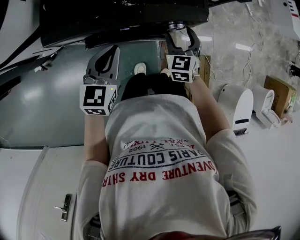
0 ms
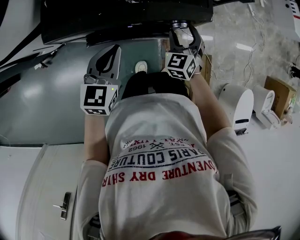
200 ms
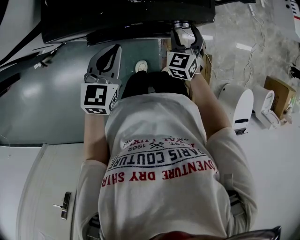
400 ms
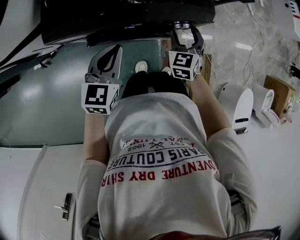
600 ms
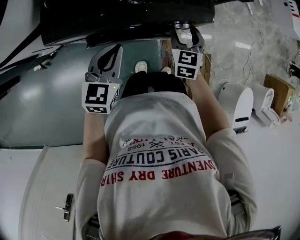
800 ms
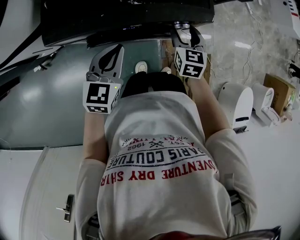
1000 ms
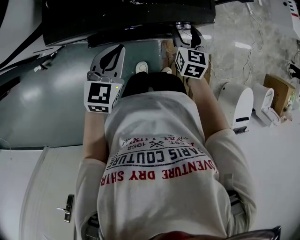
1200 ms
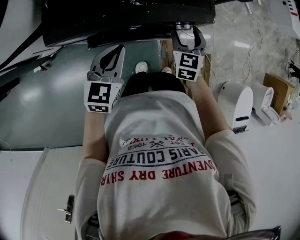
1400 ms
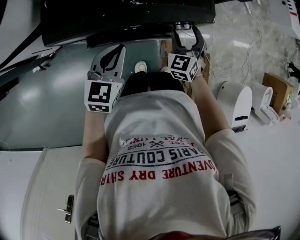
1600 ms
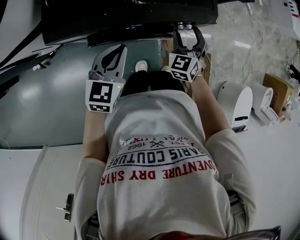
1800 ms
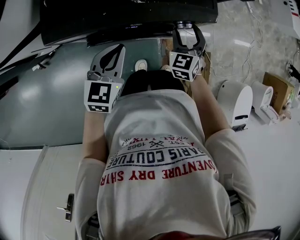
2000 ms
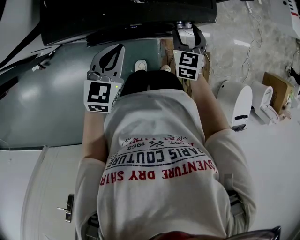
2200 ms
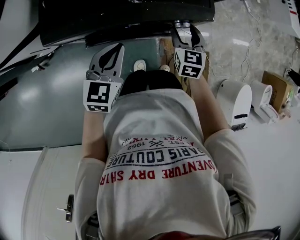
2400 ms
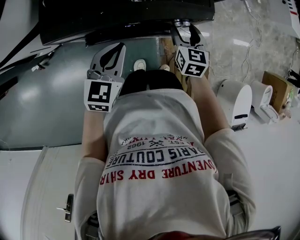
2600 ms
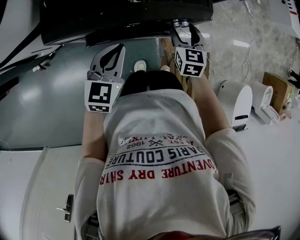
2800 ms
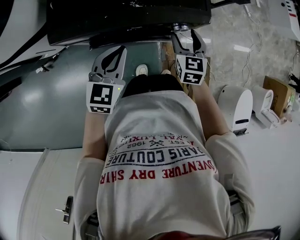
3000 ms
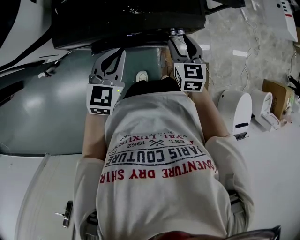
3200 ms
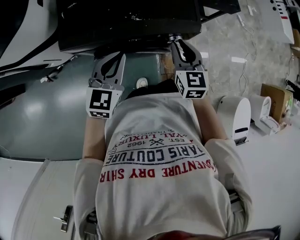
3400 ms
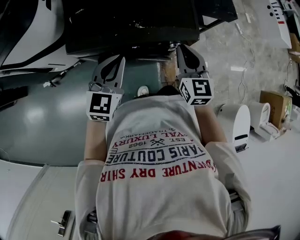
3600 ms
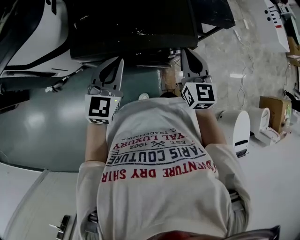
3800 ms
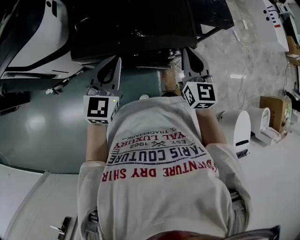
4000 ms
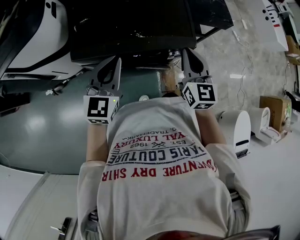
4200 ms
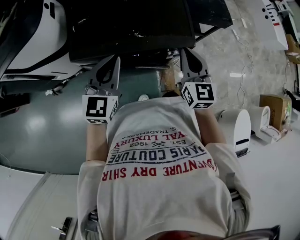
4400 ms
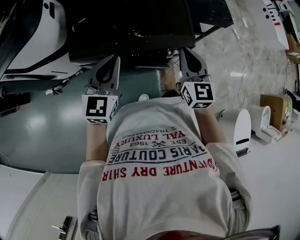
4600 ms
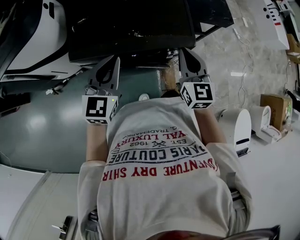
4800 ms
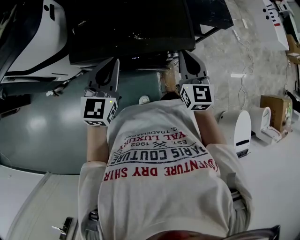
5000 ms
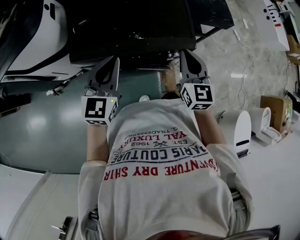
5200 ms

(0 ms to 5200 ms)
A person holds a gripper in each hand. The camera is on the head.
1800 ms - 3400 ms: Both grippers move upward, approximately 10 cm. The right gripper turns by approximately 30 degrees, and closes.
3400 ms - 5200 ms: The grippers both shift upward by approximately 10 cm.

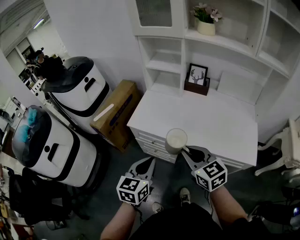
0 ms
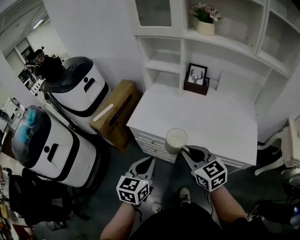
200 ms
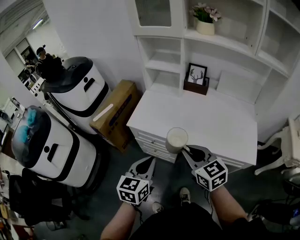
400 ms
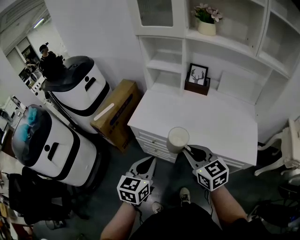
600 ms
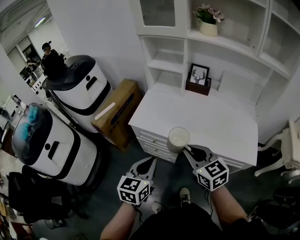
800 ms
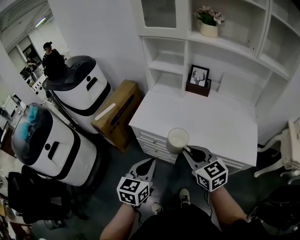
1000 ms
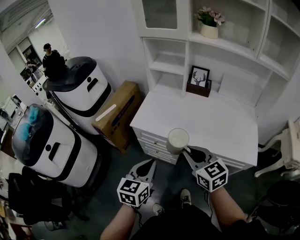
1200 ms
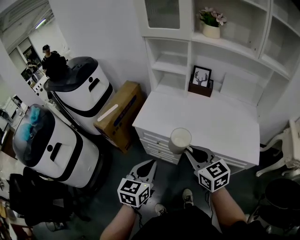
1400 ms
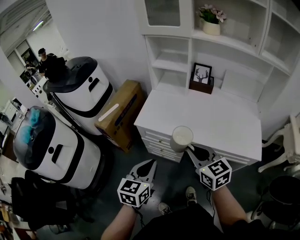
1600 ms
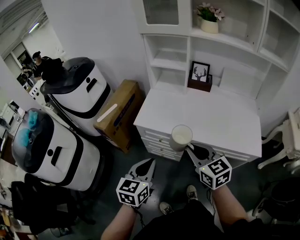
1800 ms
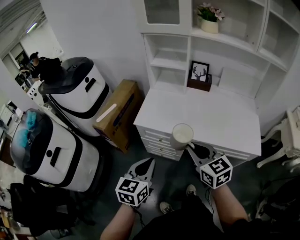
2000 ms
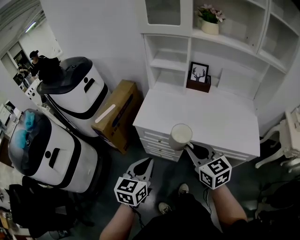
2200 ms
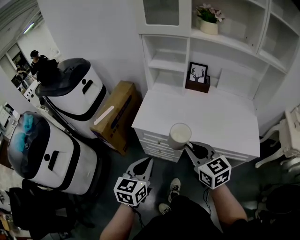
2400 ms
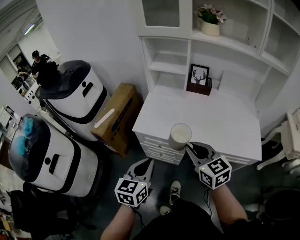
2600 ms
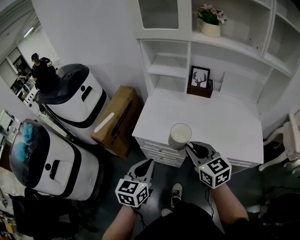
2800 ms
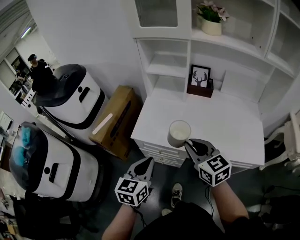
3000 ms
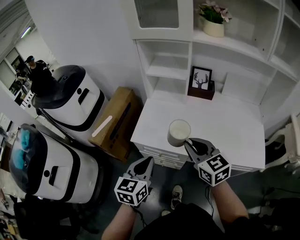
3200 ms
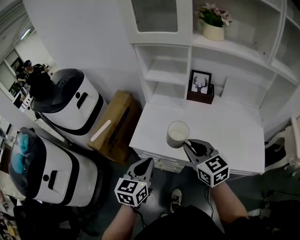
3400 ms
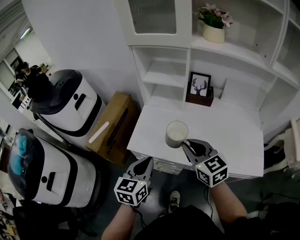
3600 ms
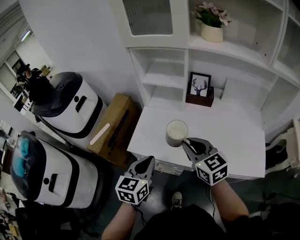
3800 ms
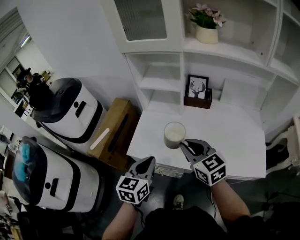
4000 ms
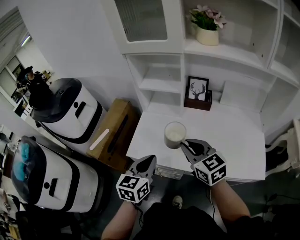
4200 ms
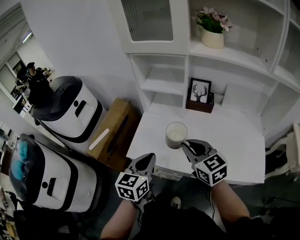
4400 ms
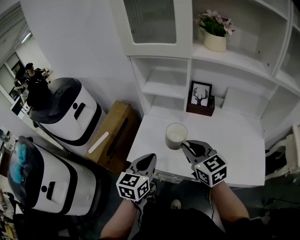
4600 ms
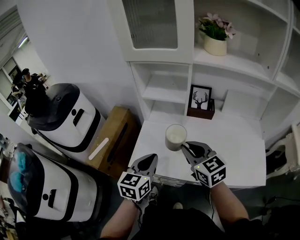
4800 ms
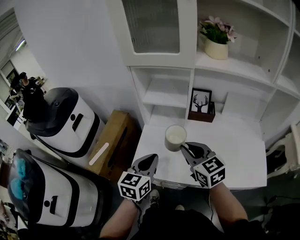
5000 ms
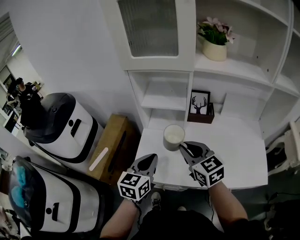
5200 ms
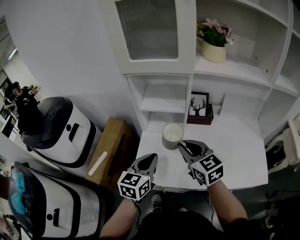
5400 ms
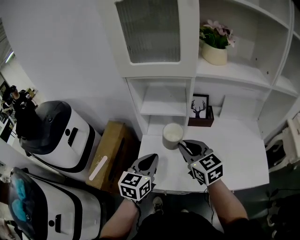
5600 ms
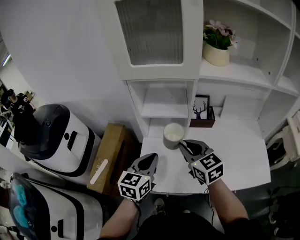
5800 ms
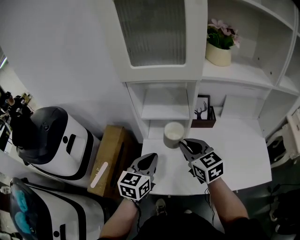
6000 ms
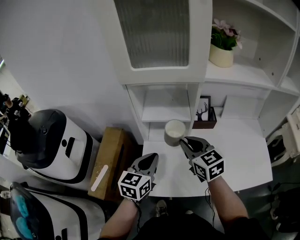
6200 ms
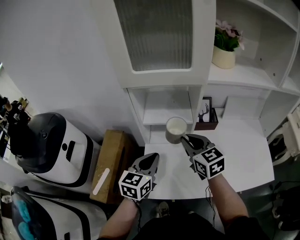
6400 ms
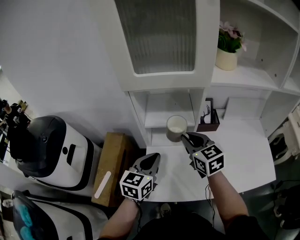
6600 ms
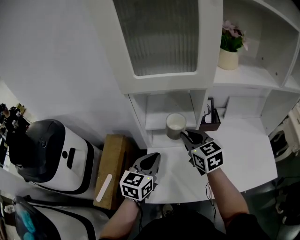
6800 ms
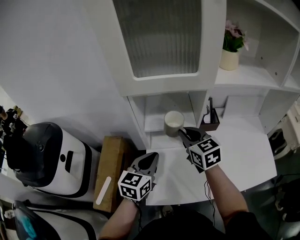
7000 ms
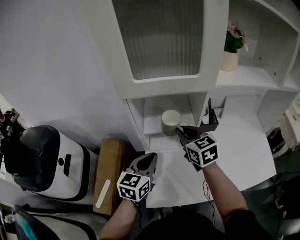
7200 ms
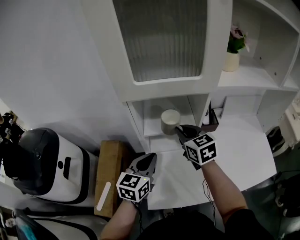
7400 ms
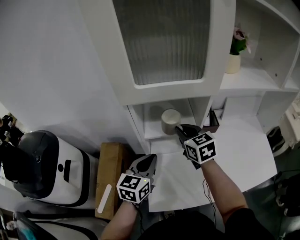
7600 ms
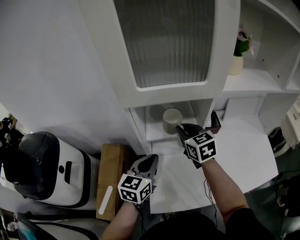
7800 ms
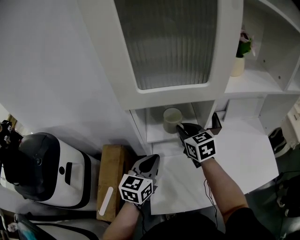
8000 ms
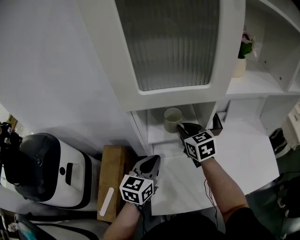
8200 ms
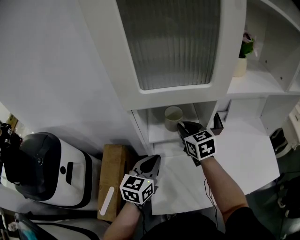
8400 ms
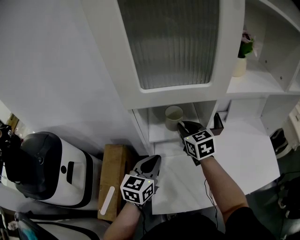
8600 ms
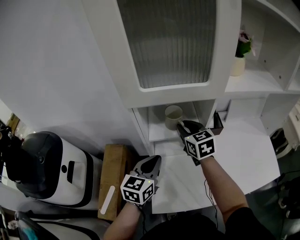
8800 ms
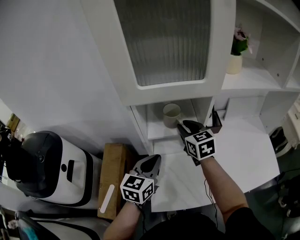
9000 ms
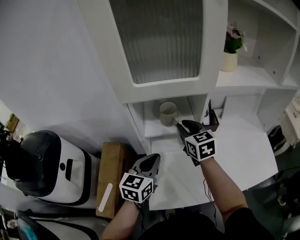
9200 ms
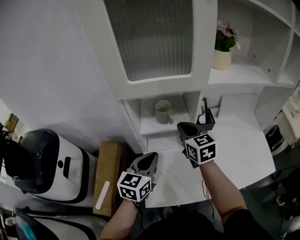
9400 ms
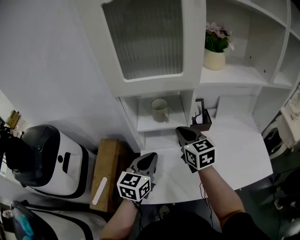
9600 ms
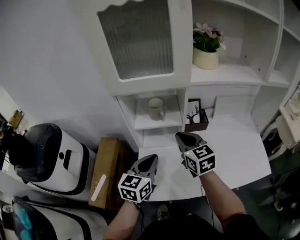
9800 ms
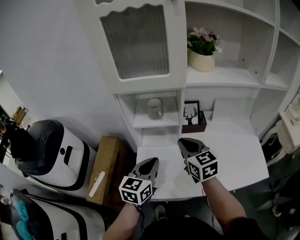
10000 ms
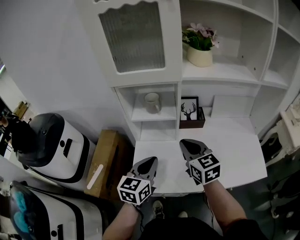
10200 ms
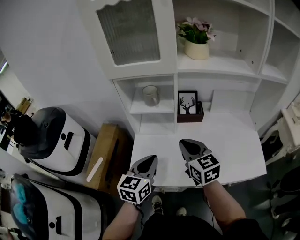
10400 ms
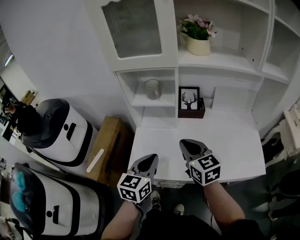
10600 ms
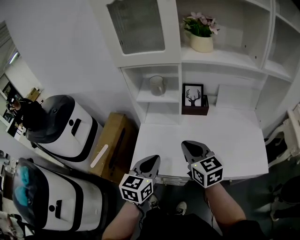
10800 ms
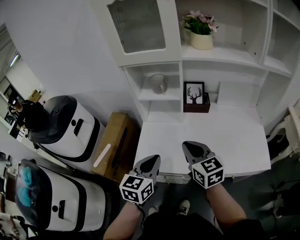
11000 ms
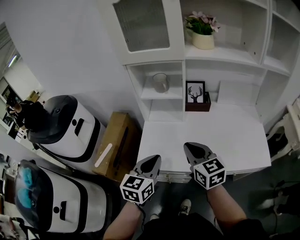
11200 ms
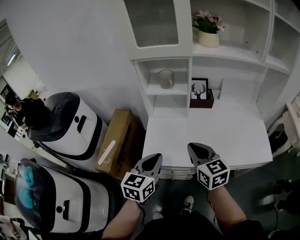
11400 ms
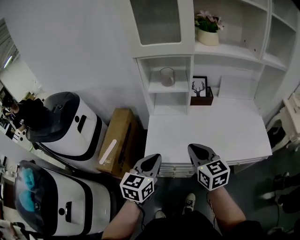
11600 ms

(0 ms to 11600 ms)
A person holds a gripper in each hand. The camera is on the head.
0 ms - 1400 ms: There are only small adjustments of the grippers.
1400 ms - 2800 ms: Both grippers travel together forward, roughly 10 cm.
2800 ms - 4400 ms: Both grippers travel together forward, approximately 15 cm.
4400 ms - 5800 ms: The left gripper is displaced forward by some 15 cm. The right gripper goes some 15 cm forward and to the left.
5800 ms - 7200 ms: The left gripper is displaced forward and to the left by roughly 10 cm, while the right gripper goes roughly 15 cm forward.
7200 ms - 8800 ms: The right gripper shifts roughly 5 cm forward.
8800 ms - 10200 ms: Both grippers travel together backward and to the right, roughly 20 cm.
10200 ms - 11600 ms: The right gripper shifts some 20 cm backward, while the left gripper goes some 15 cm backward and to the left.

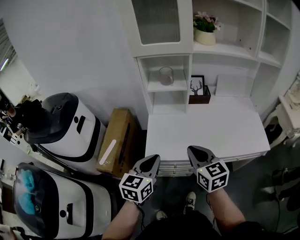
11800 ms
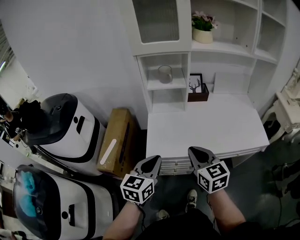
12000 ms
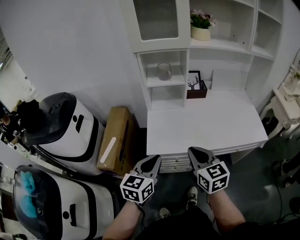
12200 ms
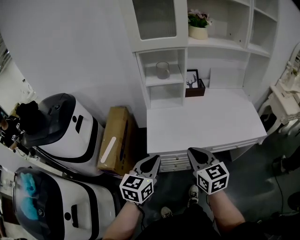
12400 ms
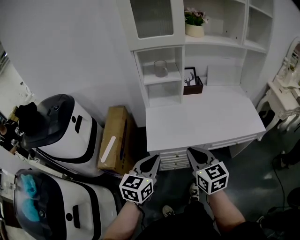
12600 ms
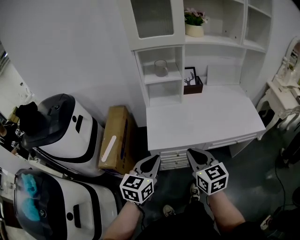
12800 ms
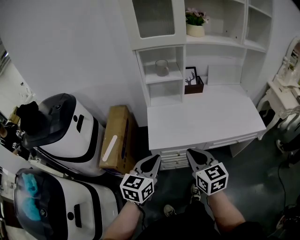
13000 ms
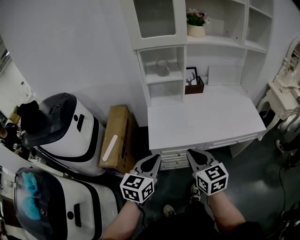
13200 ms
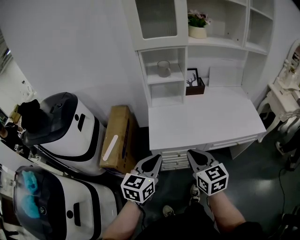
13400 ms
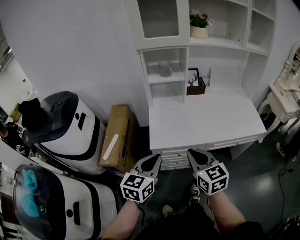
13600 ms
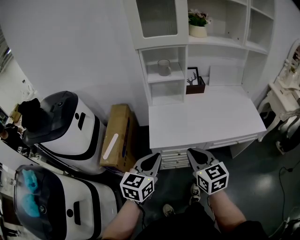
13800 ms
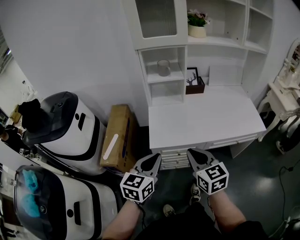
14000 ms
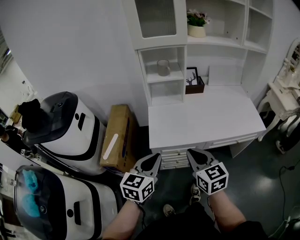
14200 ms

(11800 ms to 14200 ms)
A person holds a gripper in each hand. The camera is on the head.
11800 ms - 13000 ms: The two grippers go roughly 10 cm backward.
13000 ms - 14200 ms: Both grippers stay about where they are.

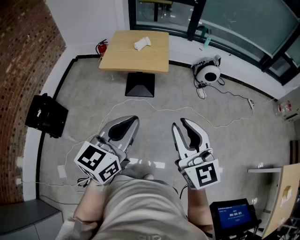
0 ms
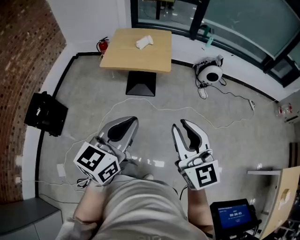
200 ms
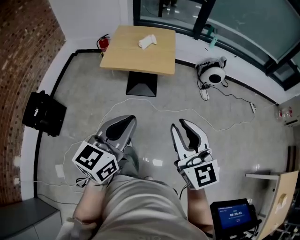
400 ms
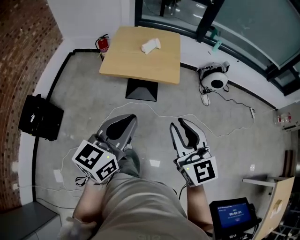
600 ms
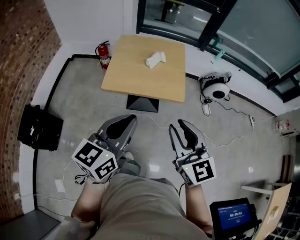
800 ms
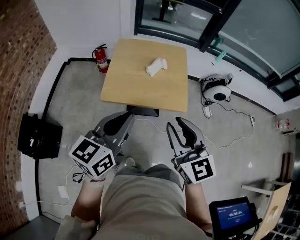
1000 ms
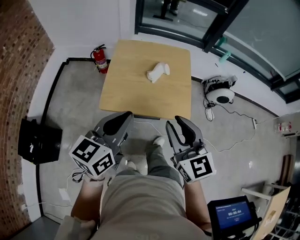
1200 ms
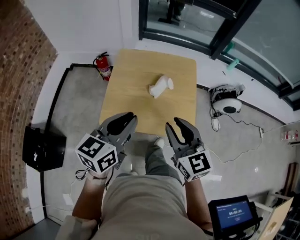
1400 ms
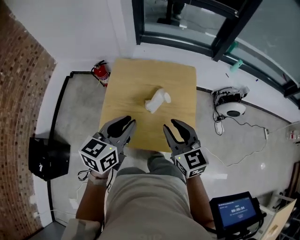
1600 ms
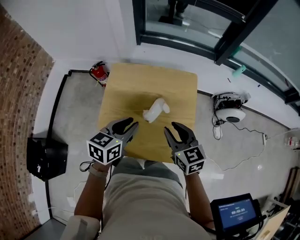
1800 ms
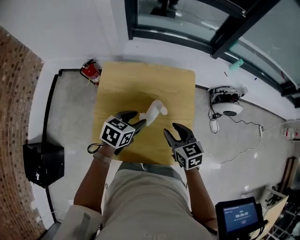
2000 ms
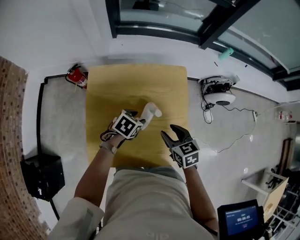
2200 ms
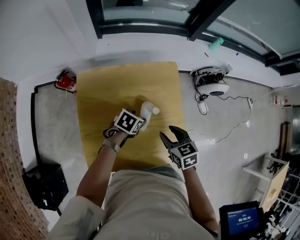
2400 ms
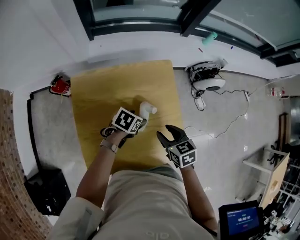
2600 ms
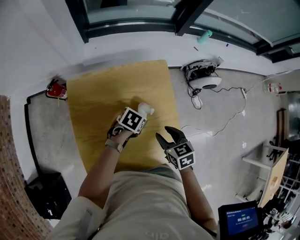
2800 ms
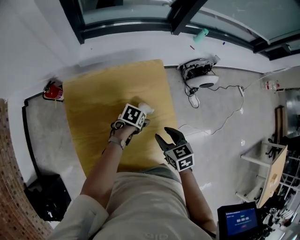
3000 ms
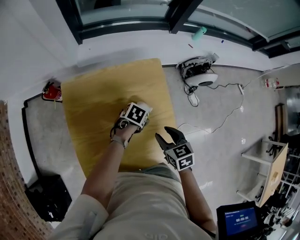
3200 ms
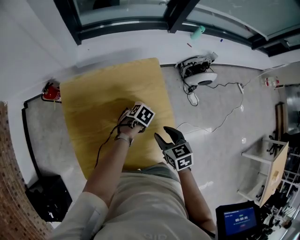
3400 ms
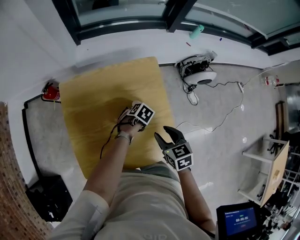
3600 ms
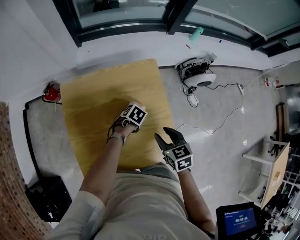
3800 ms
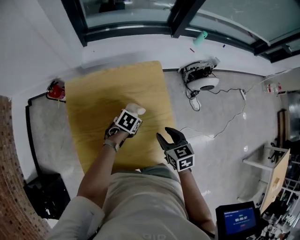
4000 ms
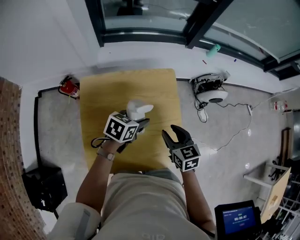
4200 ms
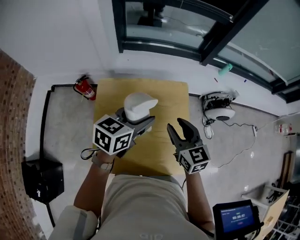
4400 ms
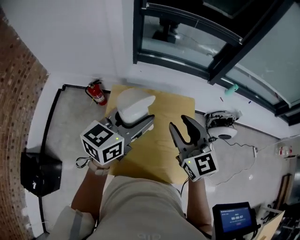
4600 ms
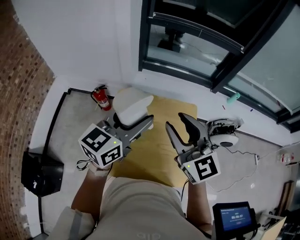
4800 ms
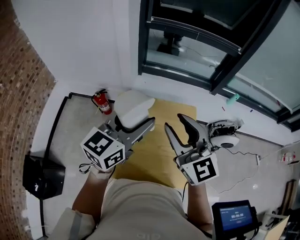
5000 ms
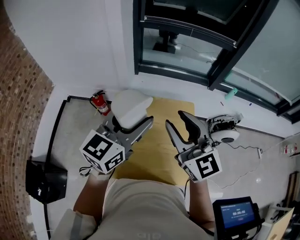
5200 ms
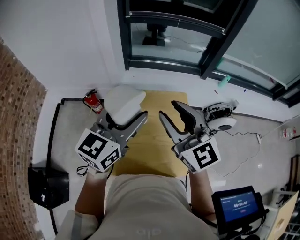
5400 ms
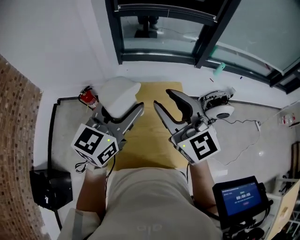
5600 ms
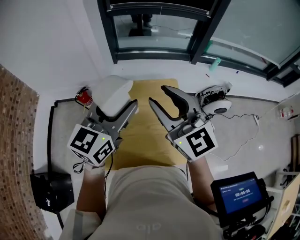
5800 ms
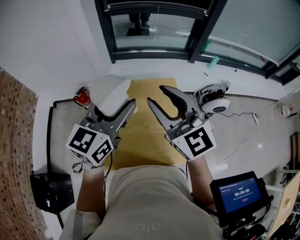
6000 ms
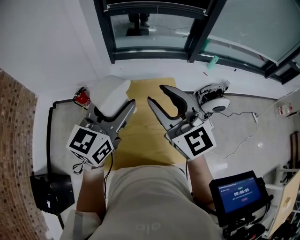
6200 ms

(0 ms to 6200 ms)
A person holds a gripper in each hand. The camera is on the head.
0 ms - 1600 ms: The two grippers travel together, forward, about 70 cm. The right gripper turns by about 20 degrees.
1600 ms - 3200 ms: The right gripper shifts approximately 15 cm downward, and angles its fingers downward, by roughly 30 degrees. Meanwhile the left gripper shifts roughly 30 cm downward, tips its fingers downward by approximately 40 degrees, and opens.
3200 ms - 4600 ms: Both grippers move upward, roughly 35 cm. The right gripper points its fingers about 40 degrees further upward. Meanwhile the left gripper points its fingers about 50 degrees further upward, and closes.
4600 ms - 6200 ms: The two grippers go about 10 cm upward.
